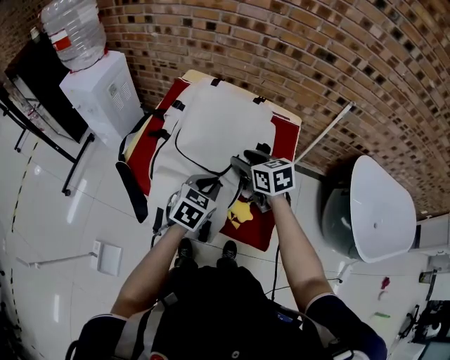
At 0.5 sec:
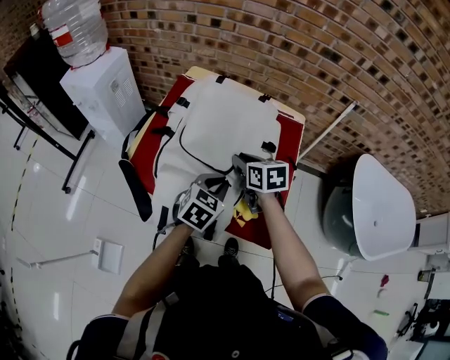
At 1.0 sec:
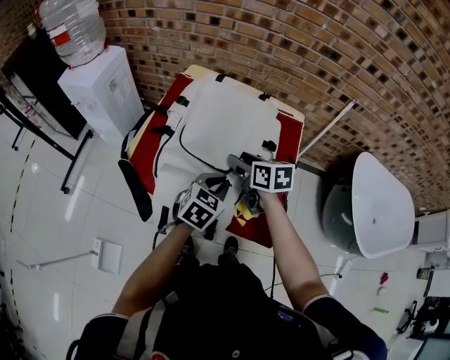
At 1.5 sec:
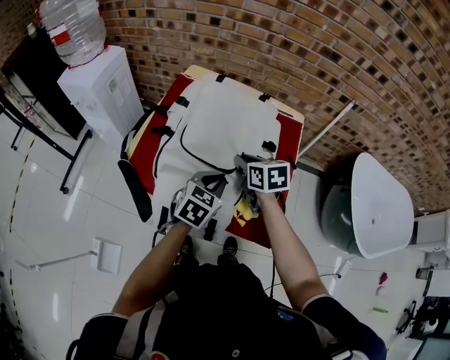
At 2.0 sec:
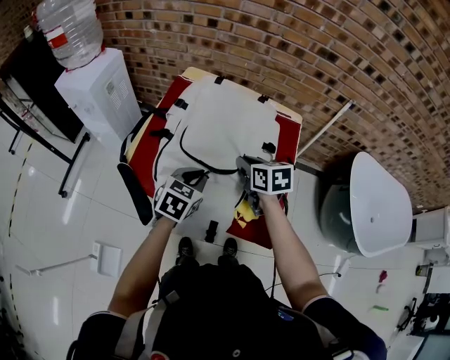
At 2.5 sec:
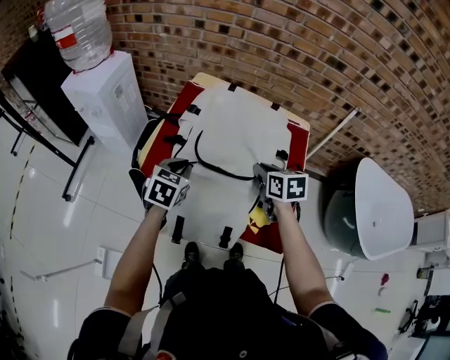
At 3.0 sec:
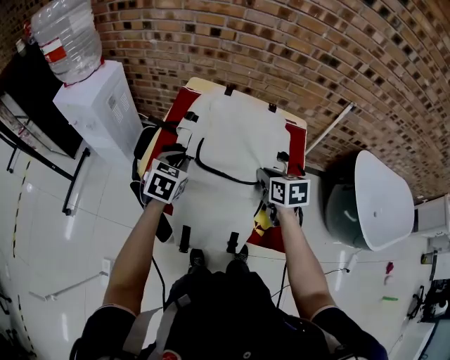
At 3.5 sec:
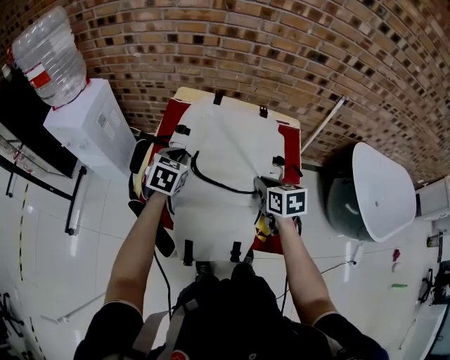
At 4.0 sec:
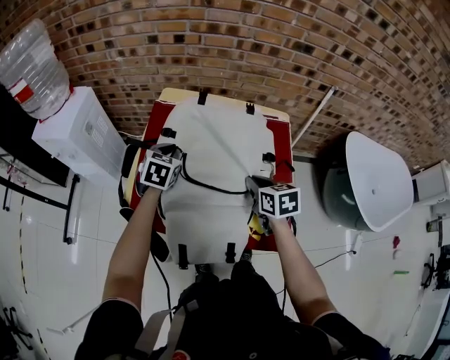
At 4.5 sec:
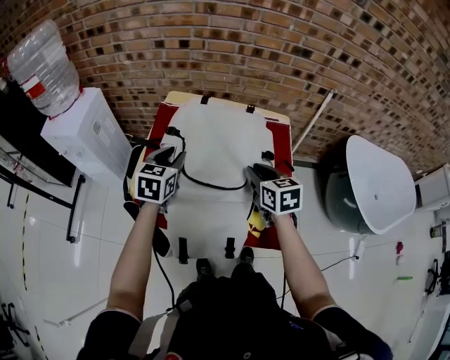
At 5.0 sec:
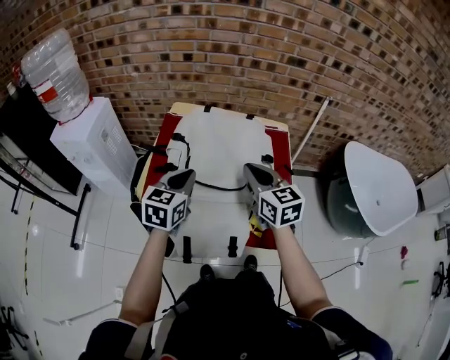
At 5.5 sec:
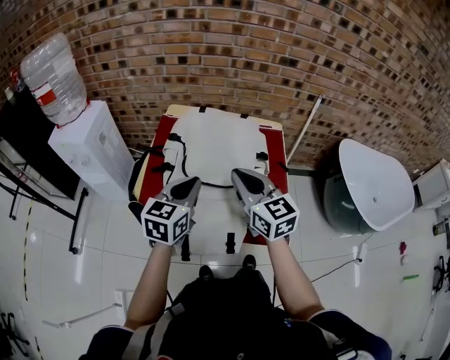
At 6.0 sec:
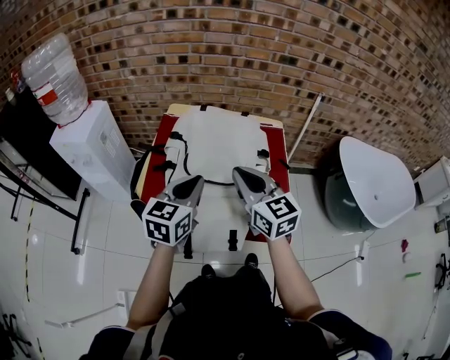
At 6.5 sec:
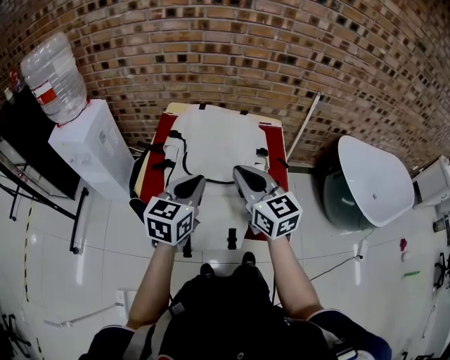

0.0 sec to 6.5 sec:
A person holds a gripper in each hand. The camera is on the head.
0.0 sec to 2.0 sec: The right gripper closes its fingers; the left gripper heads to the left, covering roughly 5 cm.
2.0 sec to 4.5 sec: The left gripper travels forward, to the left and upward by about 15 cm, and opens up.
4.5 sec to 6.5 sec: The right gripper travels upward, backward and to the left by about 15 cm, turns by roughly 30 degrees, and closes. Meanwhile the left gripper shifts some 15 cm backward, to the right and upward, and closes up.

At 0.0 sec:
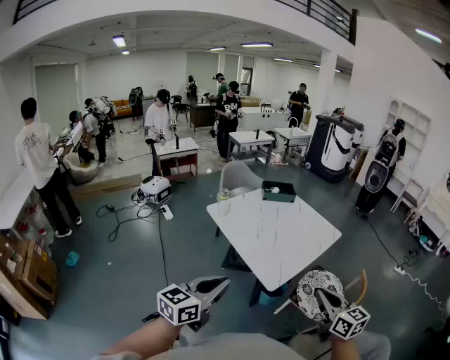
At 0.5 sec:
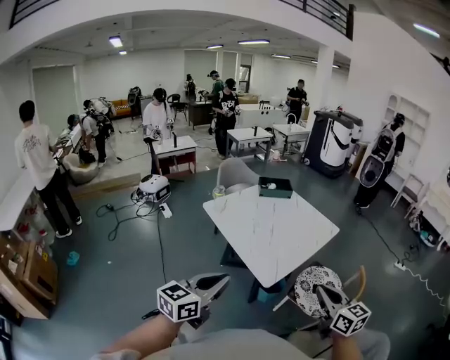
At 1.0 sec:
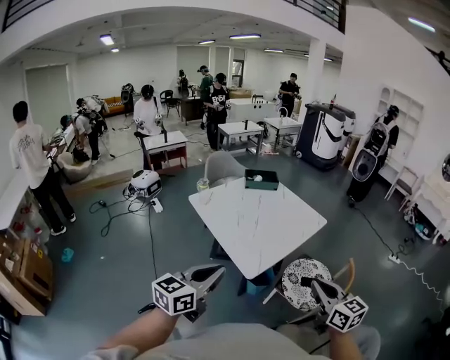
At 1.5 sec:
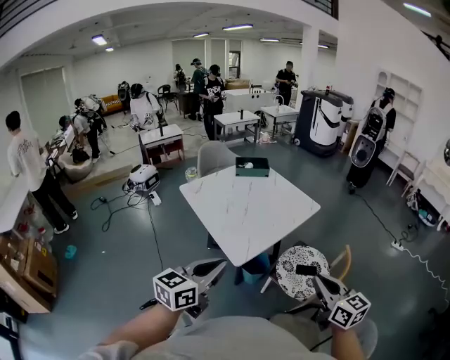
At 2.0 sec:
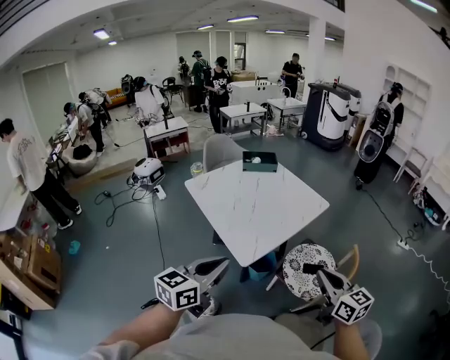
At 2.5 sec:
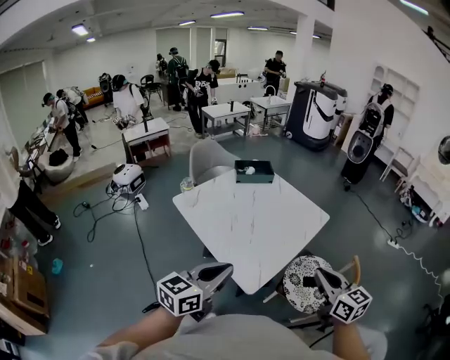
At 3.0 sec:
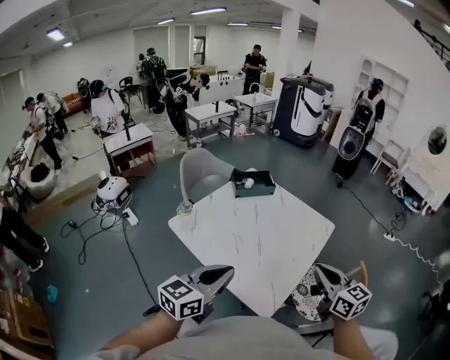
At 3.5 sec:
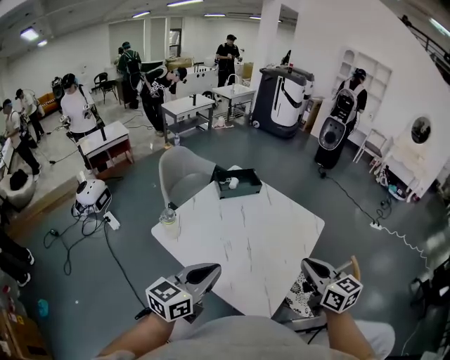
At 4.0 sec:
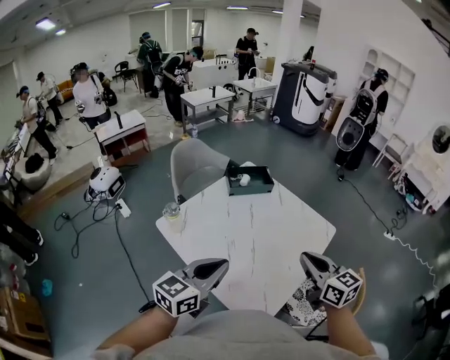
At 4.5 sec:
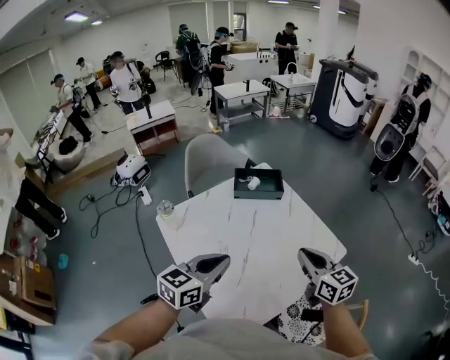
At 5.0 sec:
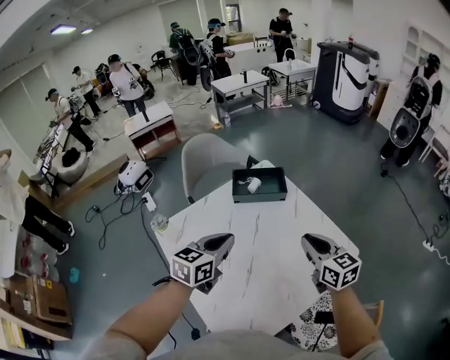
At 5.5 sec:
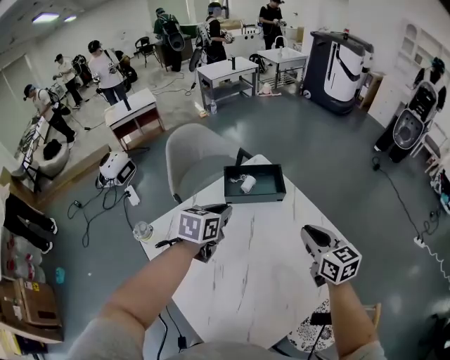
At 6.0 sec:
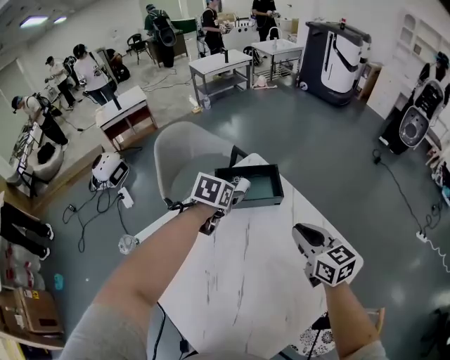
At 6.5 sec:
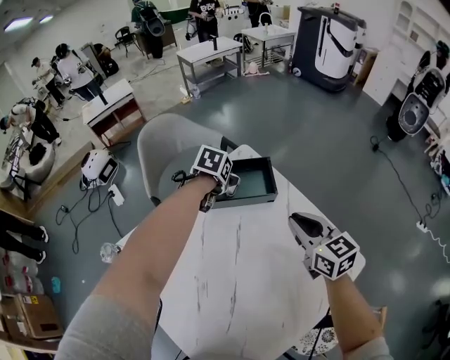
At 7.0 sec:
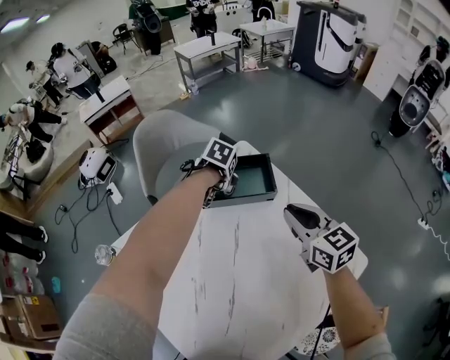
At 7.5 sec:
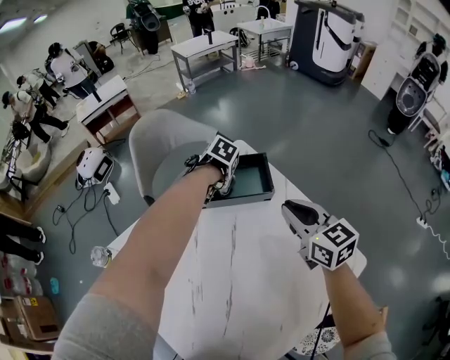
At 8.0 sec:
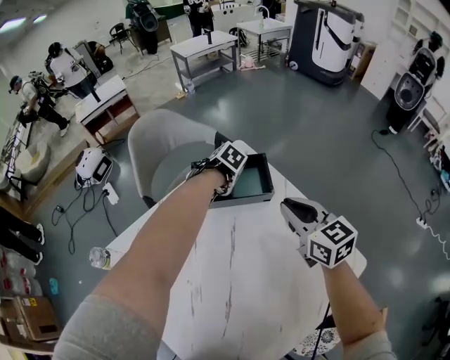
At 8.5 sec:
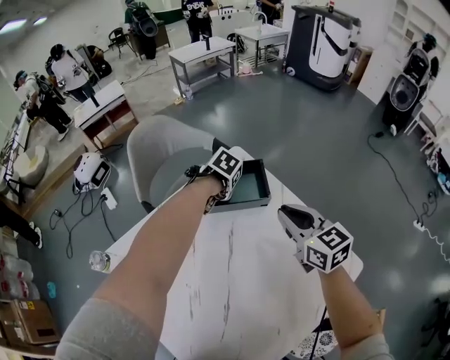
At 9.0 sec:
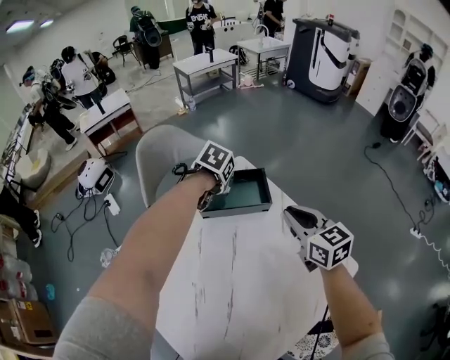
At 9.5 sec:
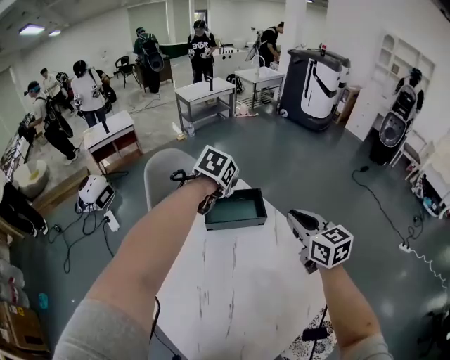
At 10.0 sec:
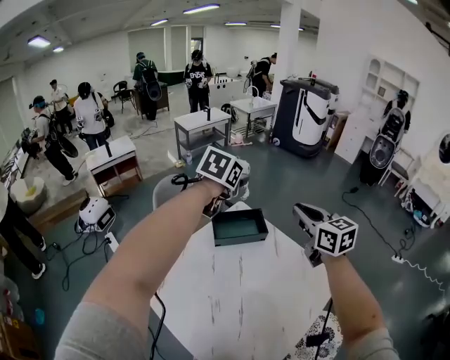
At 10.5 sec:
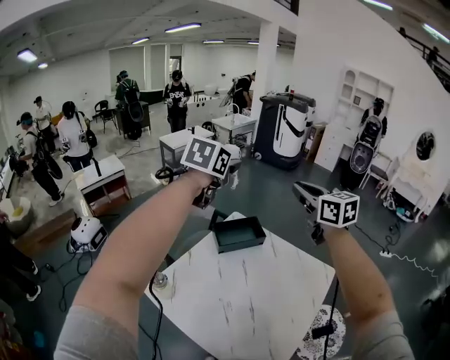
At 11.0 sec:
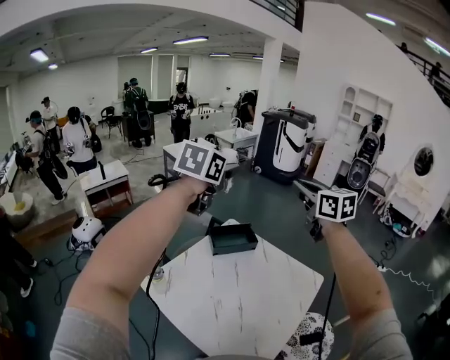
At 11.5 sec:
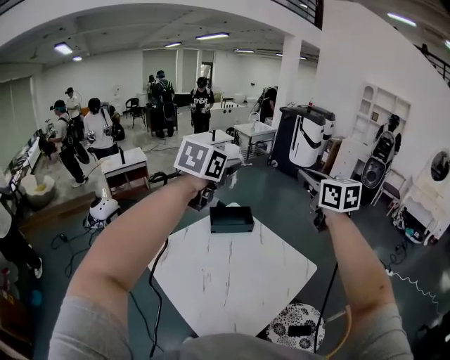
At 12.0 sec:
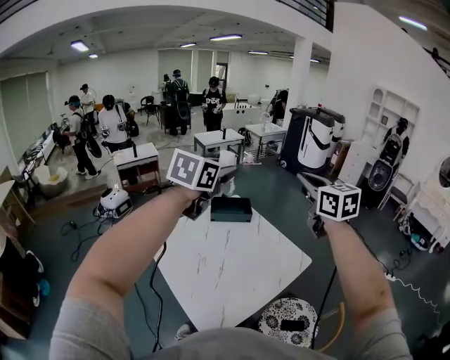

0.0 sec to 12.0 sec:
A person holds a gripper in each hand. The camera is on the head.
0.0 sec to 2.0 sec: Both grippers travel together to the right, some 15 cm.
2.0 sec to 4.0 sec: The grippers both shift forward and to the left by about 35 cm.
4.0 sec to 6.0 sec: The left gripper travels forward by about 50 cm, tips its fingers downward by roughly 40 degrees, and opens up. The right gripper goes some 35 cm forward and downward.
6.0 sec to 8.0 sec: The left gripper shifts approximately 10 cm downward, and tips its fingers downward by some 40 degrees. The right gripper changes place by about 10 cm.
8.0 sec to 10.0 sec: The left gripper is displaced upward by approximately 40 cm, tips its fingers upward by approximately 60 degrees, and closes. Meanwhile the right gripper is displaced upward by approximately 20 cm.
10.0 sec to 12.0 sec: The two grippers go some 30 cm backward and upward.

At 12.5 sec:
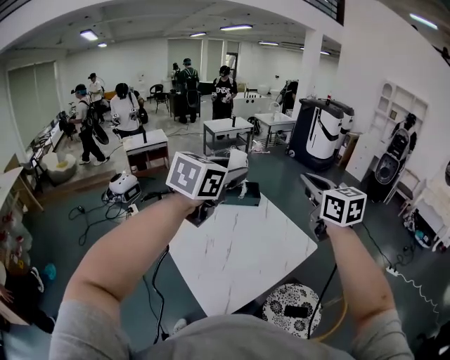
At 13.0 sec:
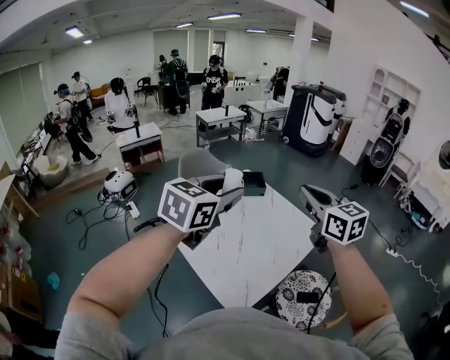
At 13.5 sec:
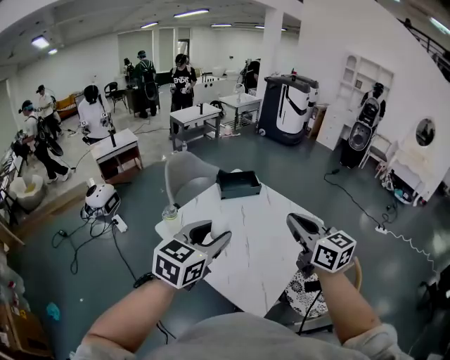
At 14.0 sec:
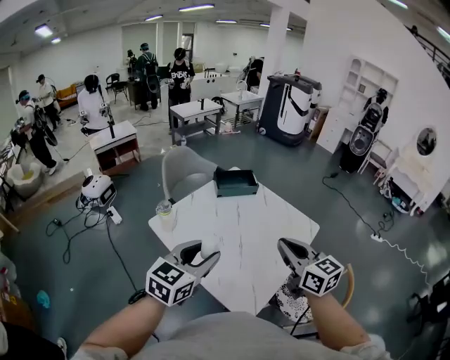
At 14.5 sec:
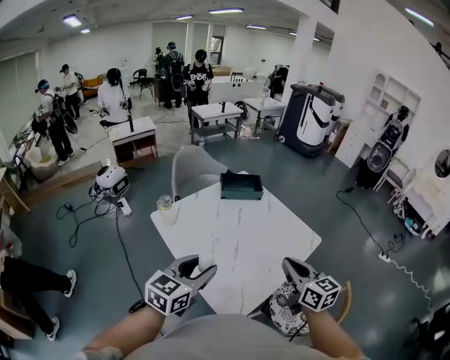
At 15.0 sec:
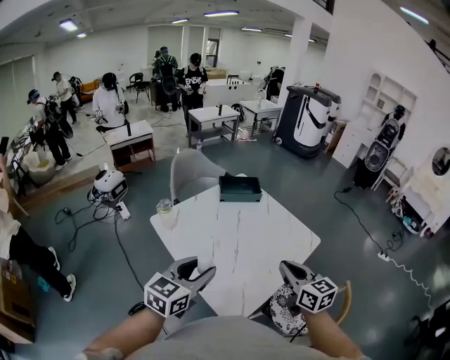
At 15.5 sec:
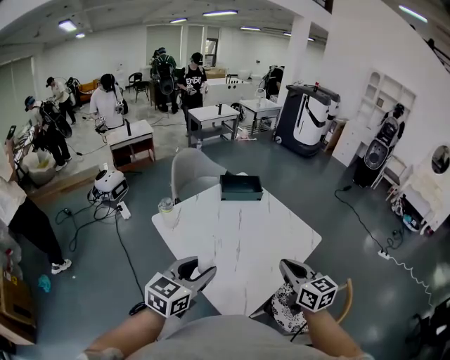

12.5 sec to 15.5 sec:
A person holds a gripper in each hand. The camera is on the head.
12.5 sec to 14.0 sec: The left gripper goes roughly 25 cm downward, to the left and backward; the right gripper heads downward, backward and to the left, covering roughly 25 cm.
14.0 sec to 15.5 sec: The right gripper is displaced downward and to the right by roughly 10 cm. The left gripper changes place by approximately 5 cm.

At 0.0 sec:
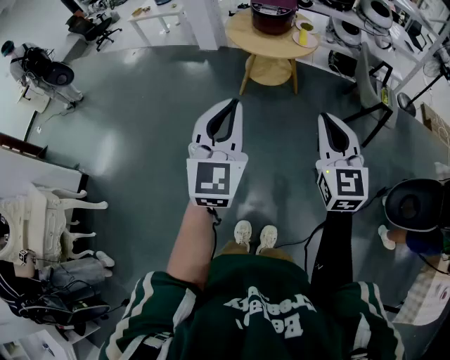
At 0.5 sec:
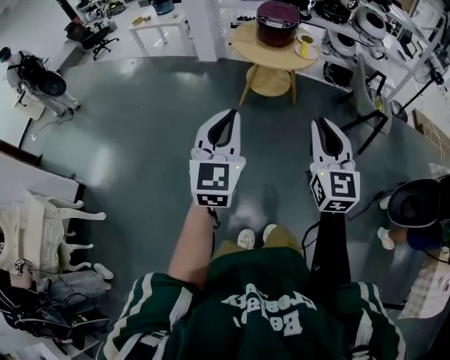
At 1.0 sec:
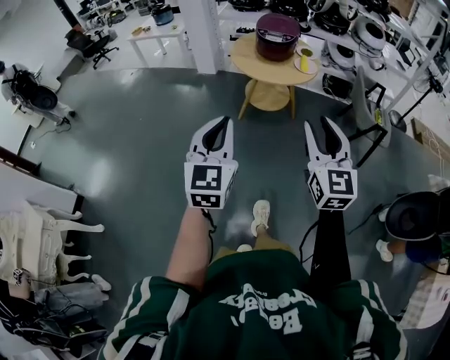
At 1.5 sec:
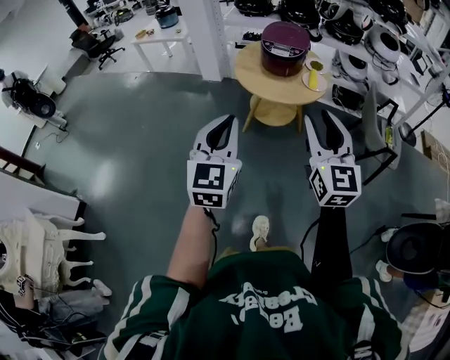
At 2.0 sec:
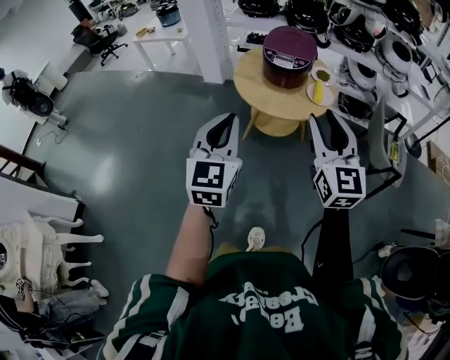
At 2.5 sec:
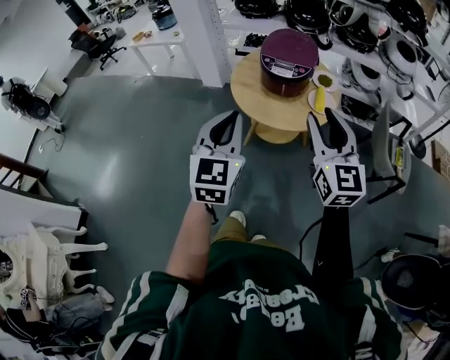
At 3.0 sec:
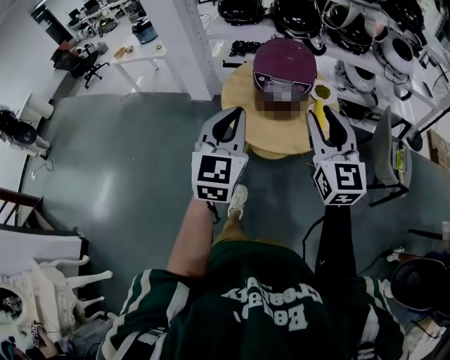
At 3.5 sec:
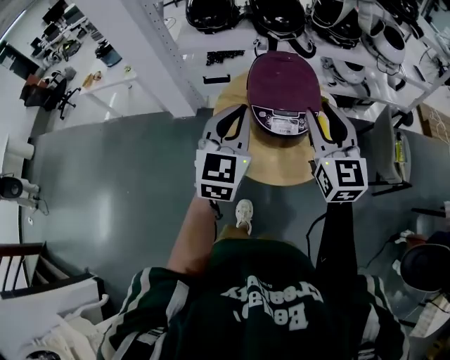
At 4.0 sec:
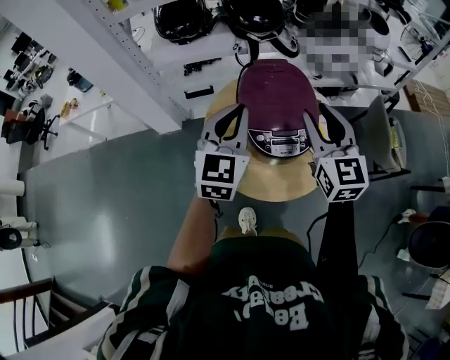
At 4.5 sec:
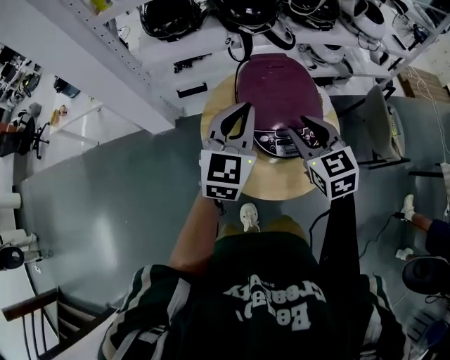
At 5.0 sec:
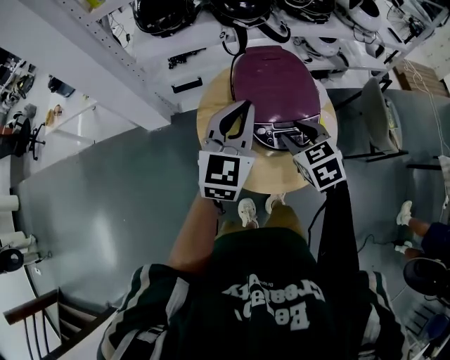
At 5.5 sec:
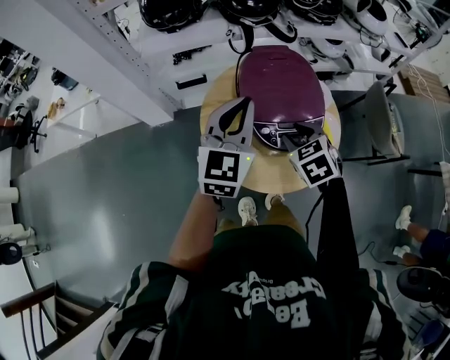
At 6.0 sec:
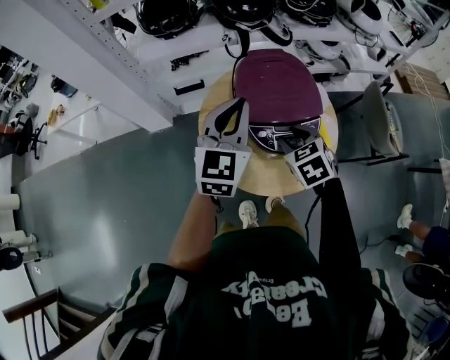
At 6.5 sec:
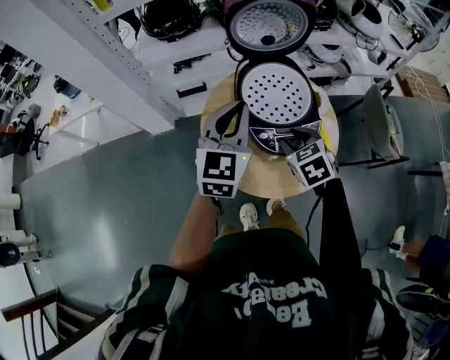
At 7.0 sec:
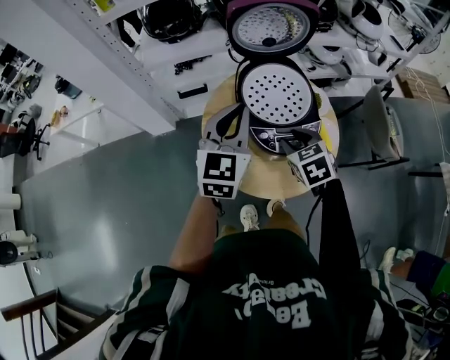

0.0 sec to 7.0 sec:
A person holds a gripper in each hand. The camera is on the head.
0.0 sec to 2.0 sec: The grippers both shift forward by about 30 cm. The right gripper opens up.
2.0 sec to 3.5 sec: The two grippers travel together, forward, some 40 cm. The left gripper changes its angle by approximately 20 degrees.
3.5 sec to 5.0 sec: The left gripper heads forward, covering roughly 10 cm; the right gripper is displaced downward and forward by roughly 20 cm, and tilts its fingers about 40 degrees downward.
5.0 sec to 7.0 sec: The grippers stay close to where they were, moving slightly.
